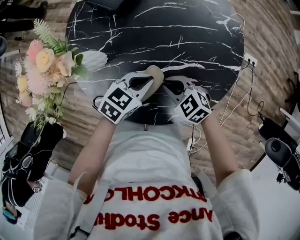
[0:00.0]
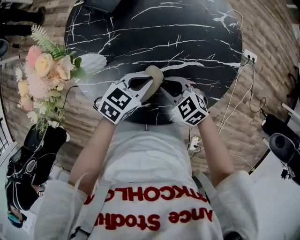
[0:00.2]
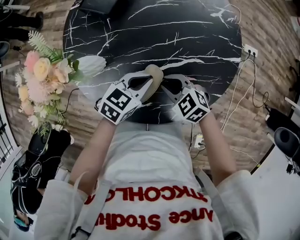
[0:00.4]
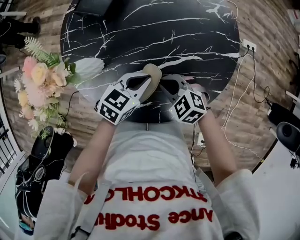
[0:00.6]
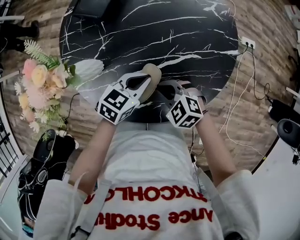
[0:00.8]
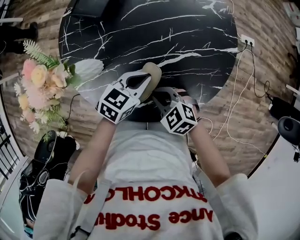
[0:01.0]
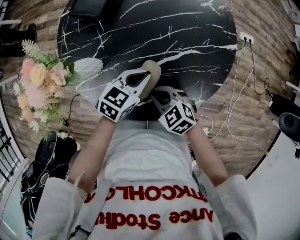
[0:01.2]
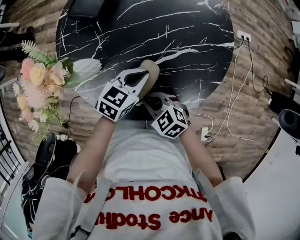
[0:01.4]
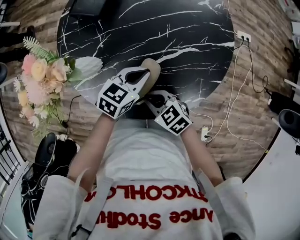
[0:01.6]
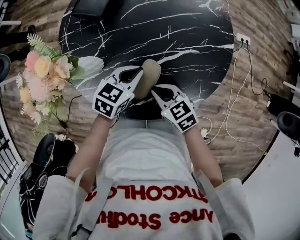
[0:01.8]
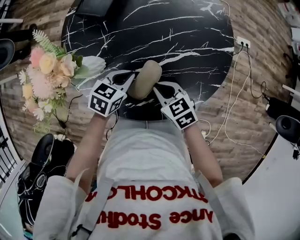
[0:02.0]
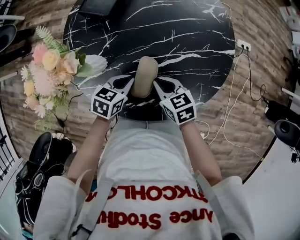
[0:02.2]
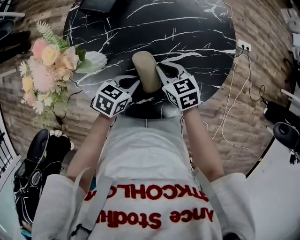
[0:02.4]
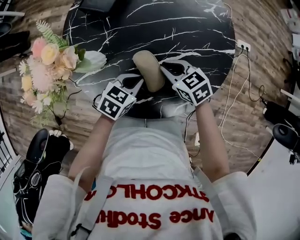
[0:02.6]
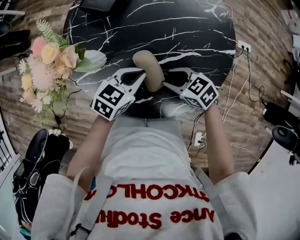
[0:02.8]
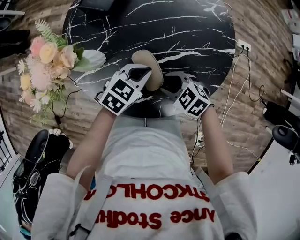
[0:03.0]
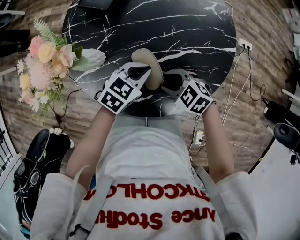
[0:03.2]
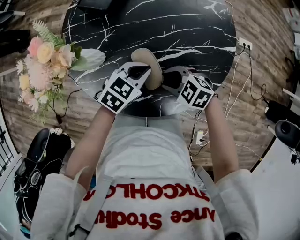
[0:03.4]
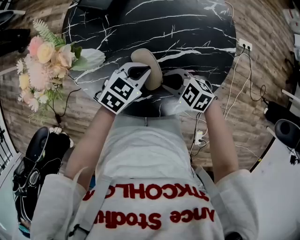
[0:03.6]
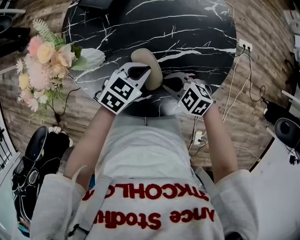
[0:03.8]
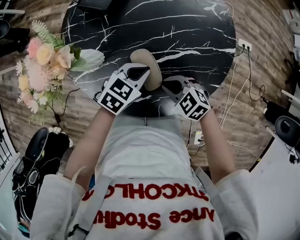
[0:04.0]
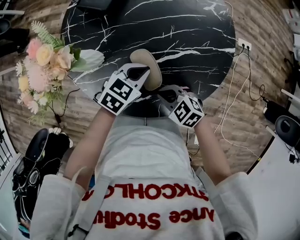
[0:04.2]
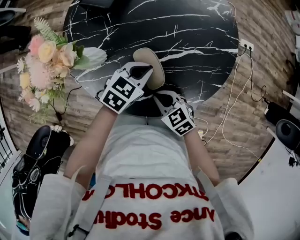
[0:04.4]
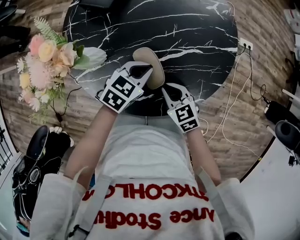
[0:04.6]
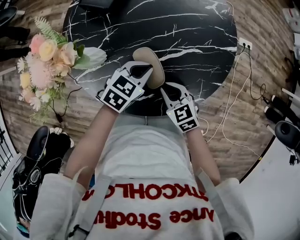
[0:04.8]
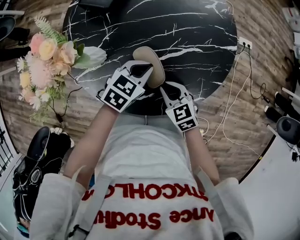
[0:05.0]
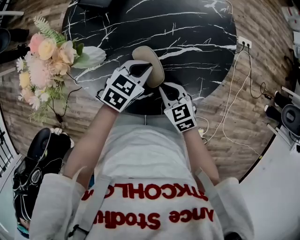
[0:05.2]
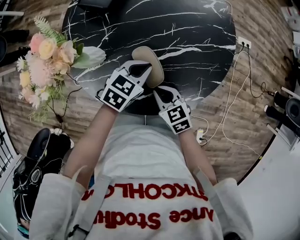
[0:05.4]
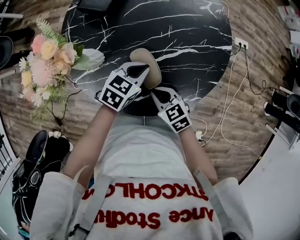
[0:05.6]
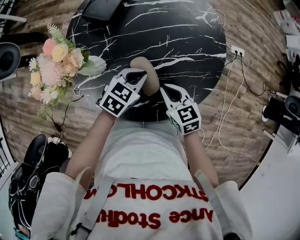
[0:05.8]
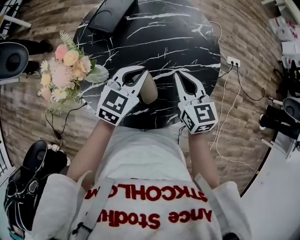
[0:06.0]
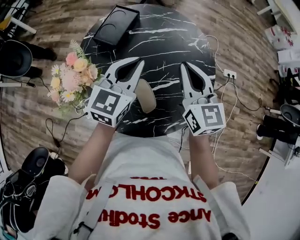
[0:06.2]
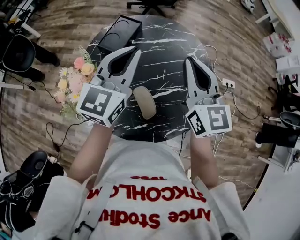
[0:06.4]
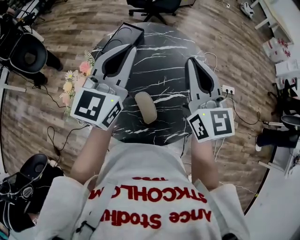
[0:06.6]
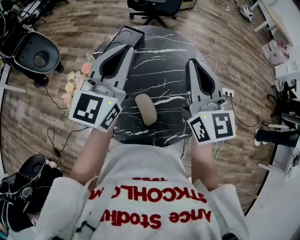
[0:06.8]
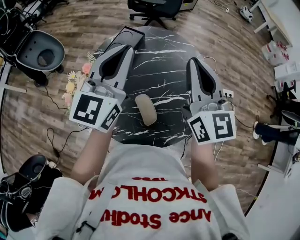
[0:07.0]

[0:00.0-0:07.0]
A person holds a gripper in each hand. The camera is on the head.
0:00.0 to 0:01.4: The right gripper ends up approximately 10 cm from where it was.
0:01.4 to 0:02.8: The right gripper shifts by approximately 10 cm, and opens up.
0:02.8 to 0:04.2: The right gripper moves some 5 cm, and closes its fingers.
0:04.2 to 0:05.6: The right gripper changes its angle by about 30 degrees.
0:05.6 to 0:07.0: The right gripper is displaced upward and forward by about 50 cm, and tilts its fingers roughly 50 degrees upward, while the left gripper moves upward, some 40 cm, and tips its fingers upward by approximately 50 degrees.

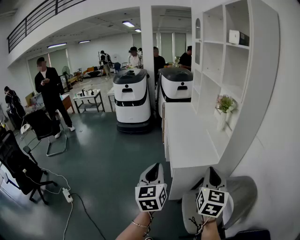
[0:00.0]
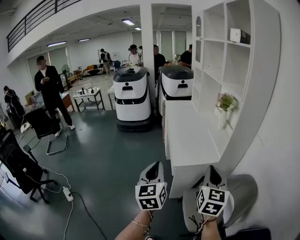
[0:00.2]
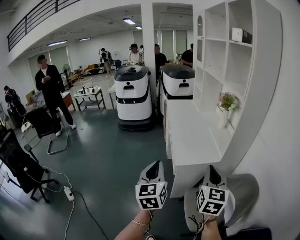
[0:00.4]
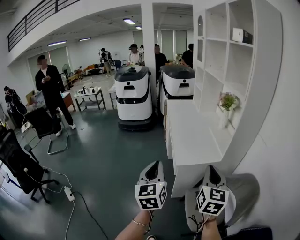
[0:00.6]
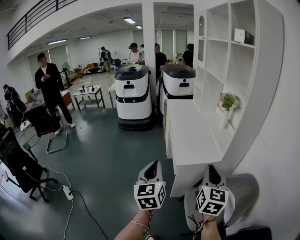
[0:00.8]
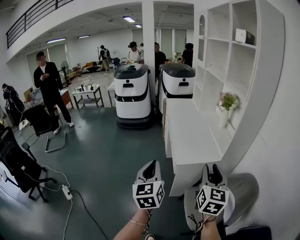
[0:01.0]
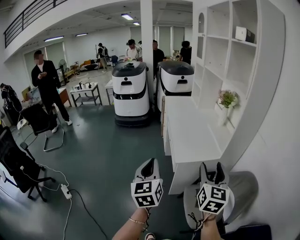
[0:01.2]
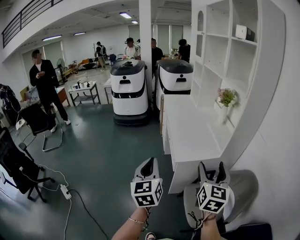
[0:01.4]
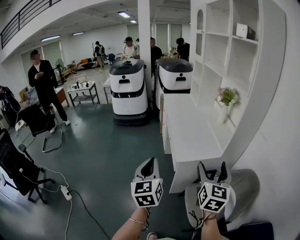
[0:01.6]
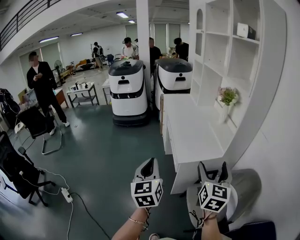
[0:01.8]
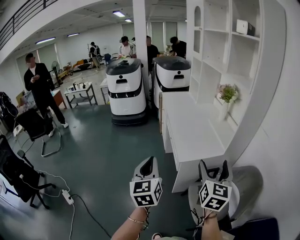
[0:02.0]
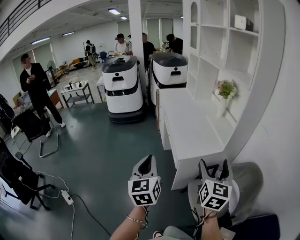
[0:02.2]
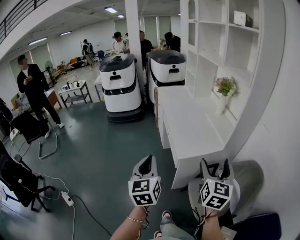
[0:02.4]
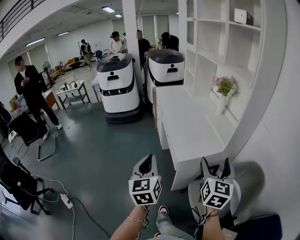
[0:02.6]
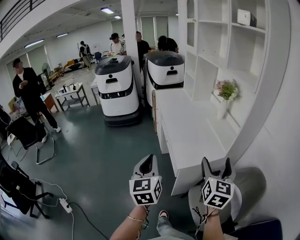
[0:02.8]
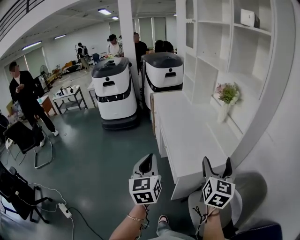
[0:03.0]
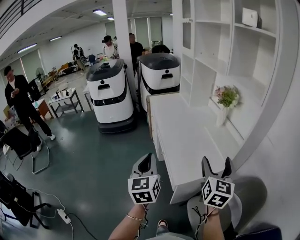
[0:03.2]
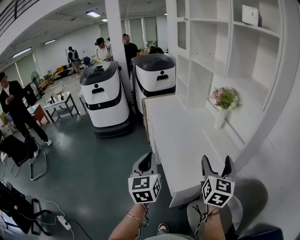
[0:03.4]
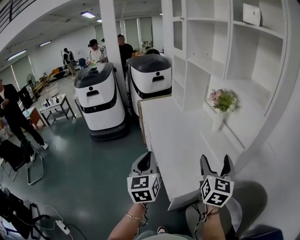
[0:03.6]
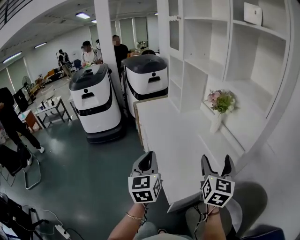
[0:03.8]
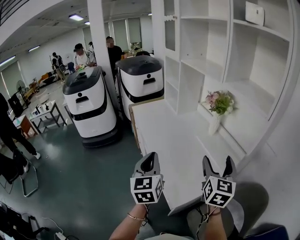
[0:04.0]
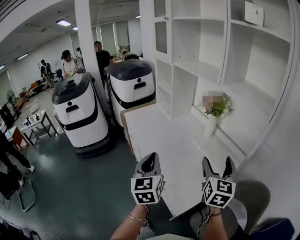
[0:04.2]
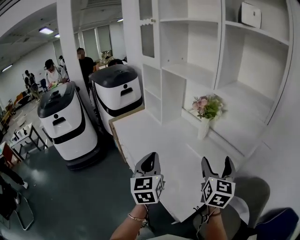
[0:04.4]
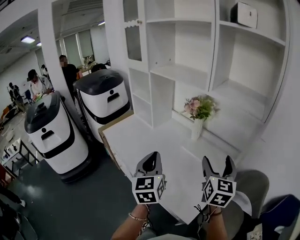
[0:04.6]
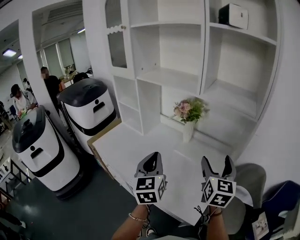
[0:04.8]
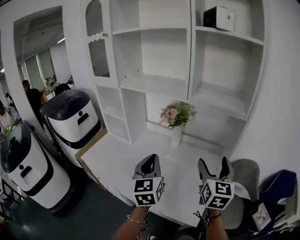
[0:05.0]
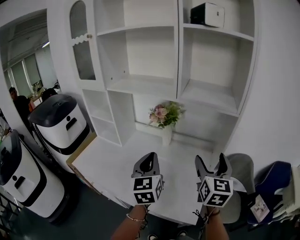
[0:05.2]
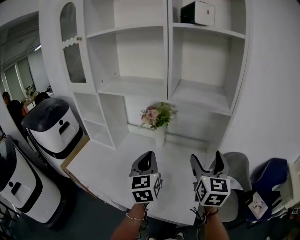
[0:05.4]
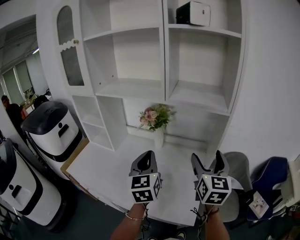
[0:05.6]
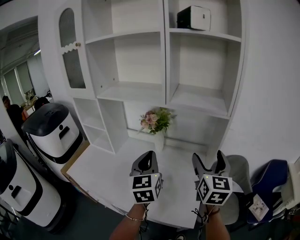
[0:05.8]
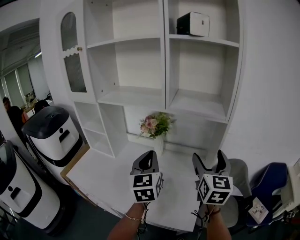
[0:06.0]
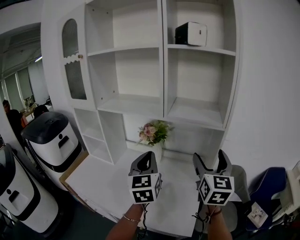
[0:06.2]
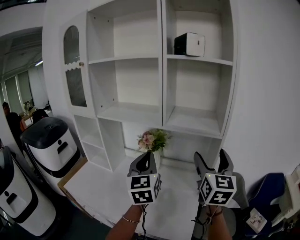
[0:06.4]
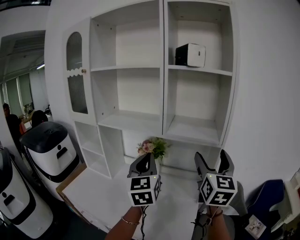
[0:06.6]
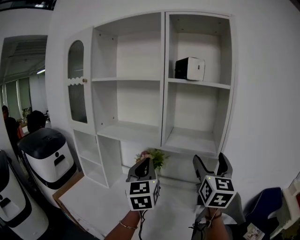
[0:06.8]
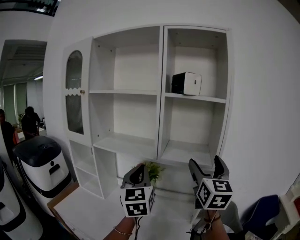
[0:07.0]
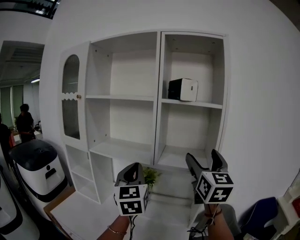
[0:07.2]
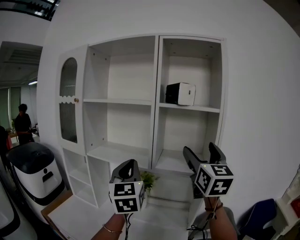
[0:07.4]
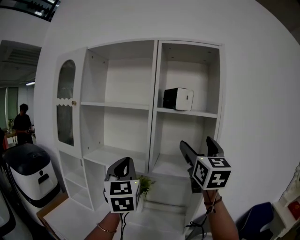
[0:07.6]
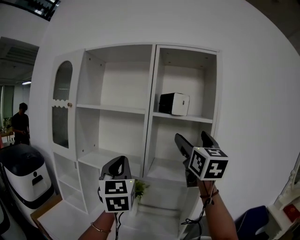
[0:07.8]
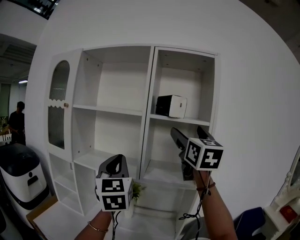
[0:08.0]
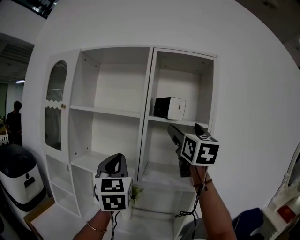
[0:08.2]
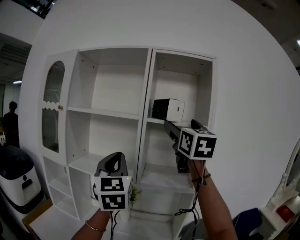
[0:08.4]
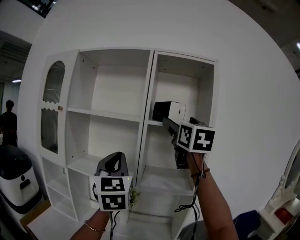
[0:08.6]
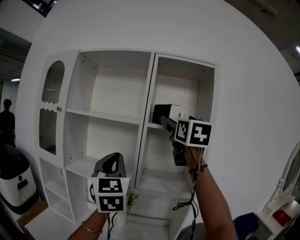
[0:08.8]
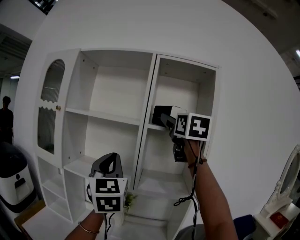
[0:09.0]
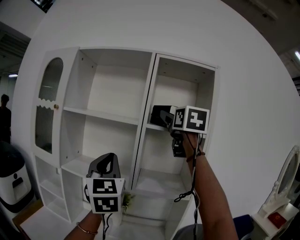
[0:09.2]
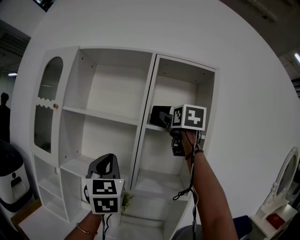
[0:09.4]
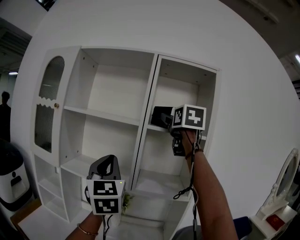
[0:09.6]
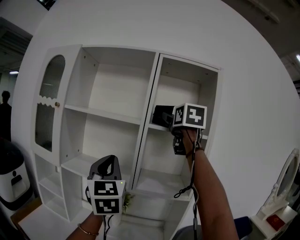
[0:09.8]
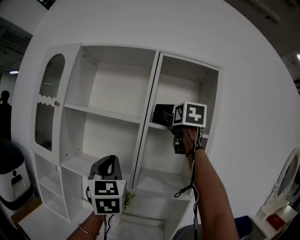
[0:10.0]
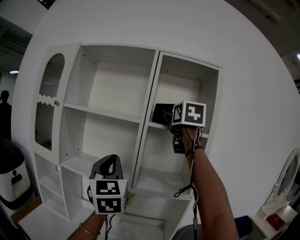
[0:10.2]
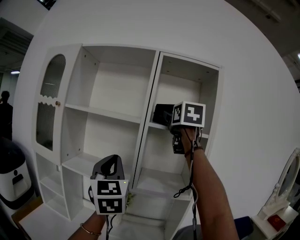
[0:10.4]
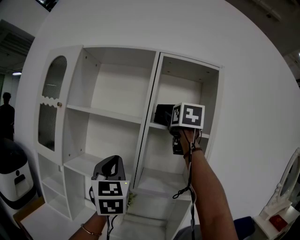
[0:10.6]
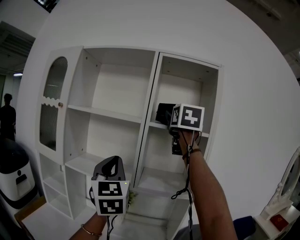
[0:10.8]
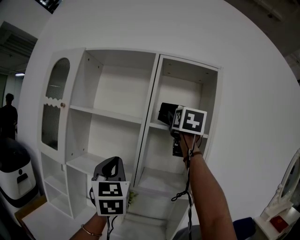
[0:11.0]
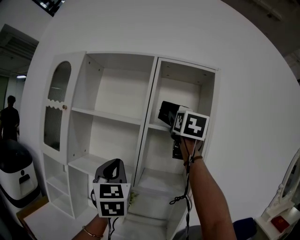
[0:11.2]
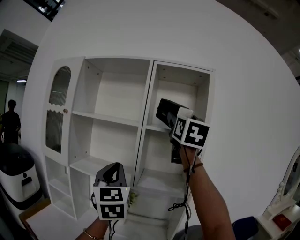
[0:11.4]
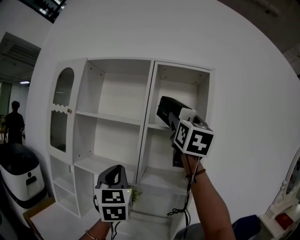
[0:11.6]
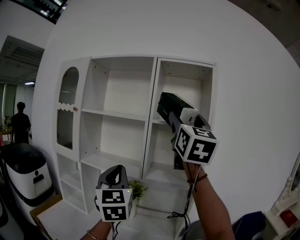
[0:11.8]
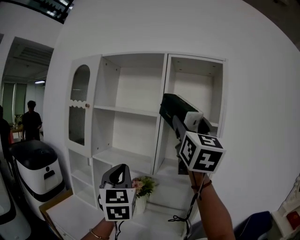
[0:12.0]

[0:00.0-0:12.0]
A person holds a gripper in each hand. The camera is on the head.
0:00.0 to 0:01.6: The right gripper opens its fingers. The left gripper heads to the left, covering approximately 5 cm.
0:01.6 to 0:03.0: The two grippers go roughly 15 cm forward.
0:03.0 to 0:04.4: Both grippers travel together forward, roughly 30 cm. The right gripper swivels roughly 20 degrees; the left gripper rotates approximately 30 degrees.
0:04.4 to 0:06.0: The right gripper is displaced upward by roughly 10 cm, and rotates some 30 degrees. The left gripper ends up roughly 20 cm from where it was, and rotates some 40 degrees.
0:06.0 to 0:07.6: Both grippers travel together upward, roughly 25 cm. The right gripper swivels some 20 degrees.
0:07.6 to 0:09.0: The right gripper is displaced upward and forward by about 15 cm, while the left gripper travels upward by roughly 5 cm.
0:09.0 to 0:10.4: The grippers make only small movements.
0:10.4 to 0:12.0: The right gripper moves backward, about 20 cm, and turns by approximately 30 degrees. Meanwhile the left gripper goes about 10 cm backward and downward.

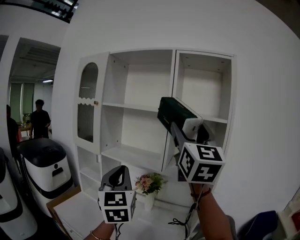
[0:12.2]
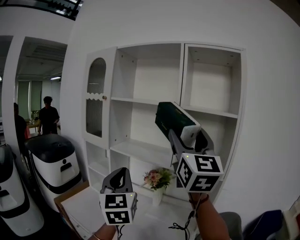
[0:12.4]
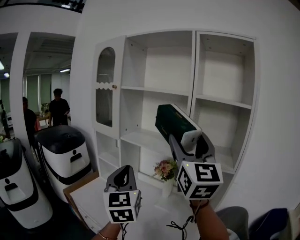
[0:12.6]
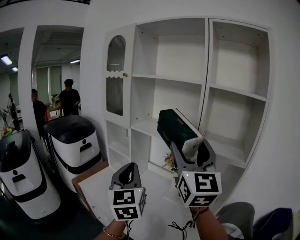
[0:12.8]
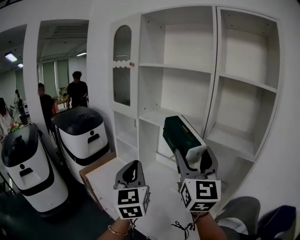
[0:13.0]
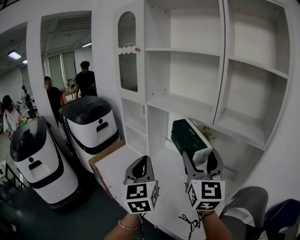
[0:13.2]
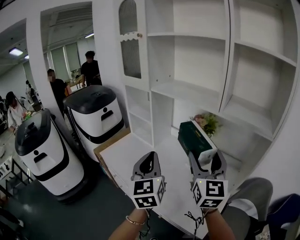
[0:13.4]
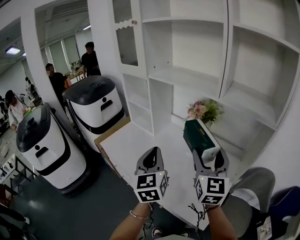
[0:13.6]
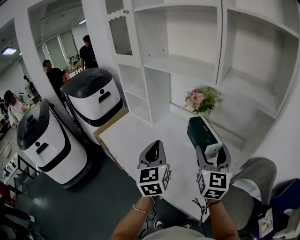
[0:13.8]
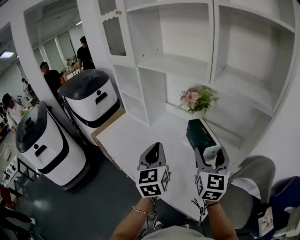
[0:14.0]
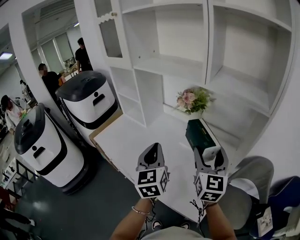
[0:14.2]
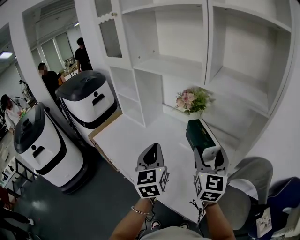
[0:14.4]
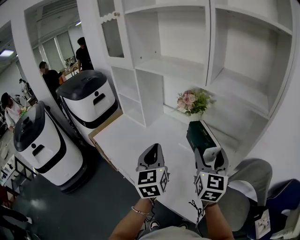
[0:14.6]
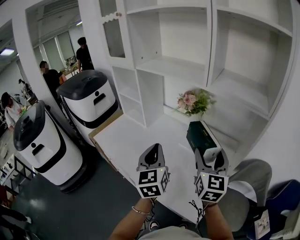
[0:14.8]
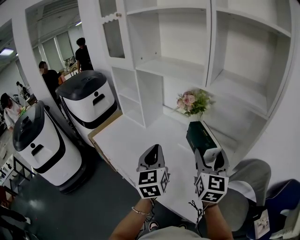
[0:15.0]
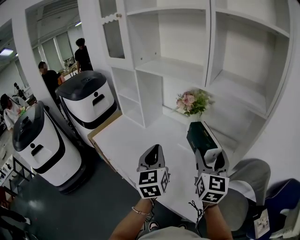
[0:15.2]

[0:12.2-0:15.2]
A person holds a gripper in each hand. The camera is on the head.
0:12.2 to 0:13.8: The left gripper goes some 25 cm downward, and turns by about 20 degrees; the right gripper shifts some 40 cm downward, and turns by some 30 degrees.
0:13.8 to 0:15.2: There are only small adjustments of the grippers.

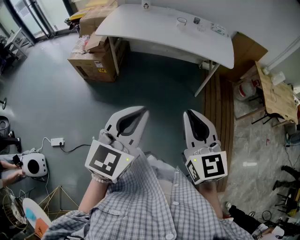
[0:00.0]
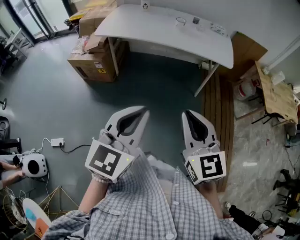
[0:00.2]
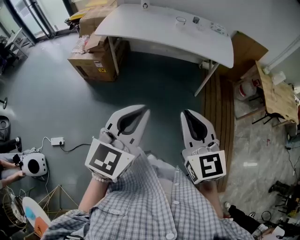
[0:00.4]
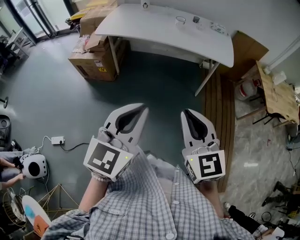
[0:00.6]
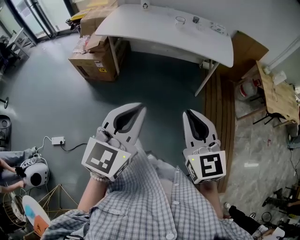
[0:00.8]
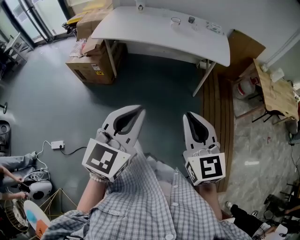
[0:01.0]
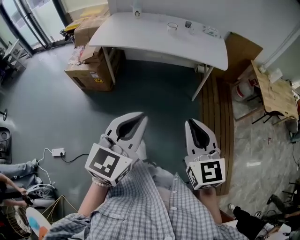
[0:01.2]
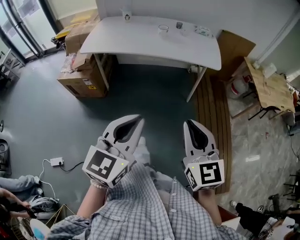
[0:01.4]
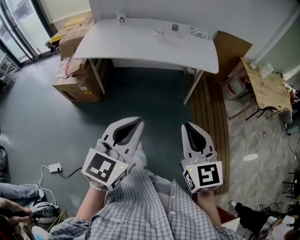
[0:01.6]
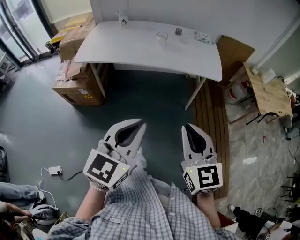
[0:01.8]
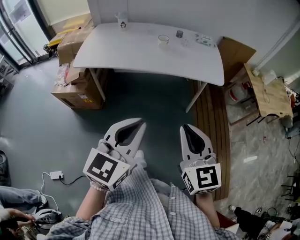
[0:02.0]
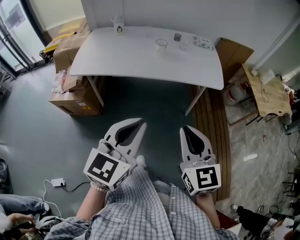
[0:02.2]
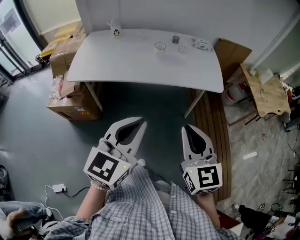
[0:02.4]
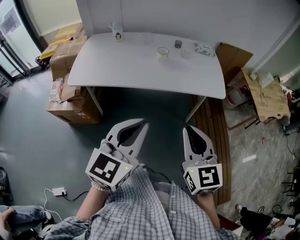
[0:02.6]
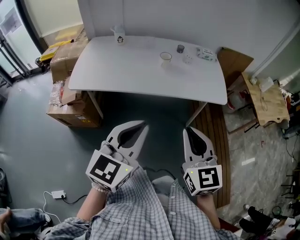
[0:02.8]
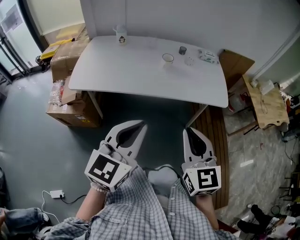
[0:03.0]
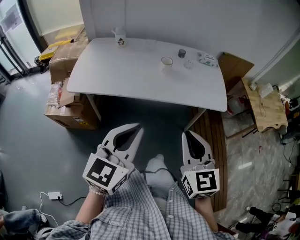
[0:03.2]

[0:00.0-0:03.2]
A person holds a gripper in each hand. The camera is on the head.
0:00.0 to 0:01.6: The left gripper moves forward, some 10 cm; the right gripper is displaced forward and to the right by roughly 10 cm.
0:01.6 to 0:03.2: The two grippers go approximately 25 cm forward and to the left.
